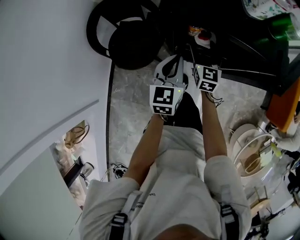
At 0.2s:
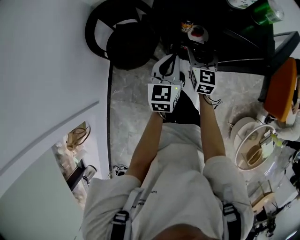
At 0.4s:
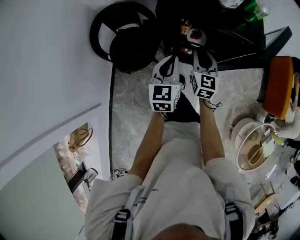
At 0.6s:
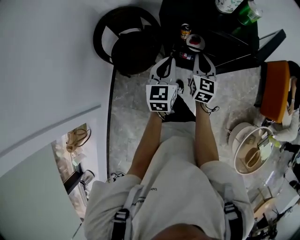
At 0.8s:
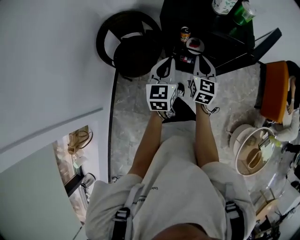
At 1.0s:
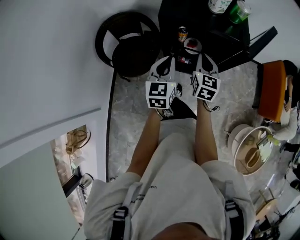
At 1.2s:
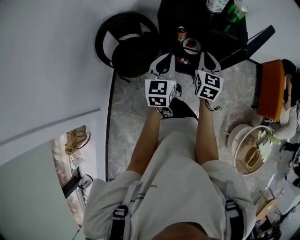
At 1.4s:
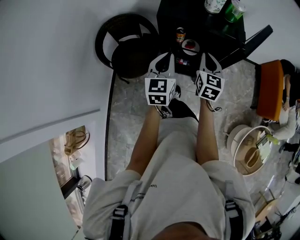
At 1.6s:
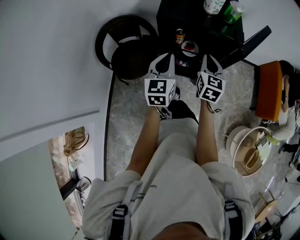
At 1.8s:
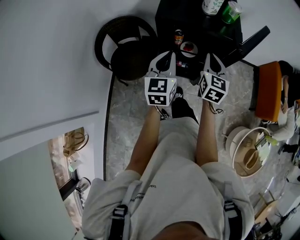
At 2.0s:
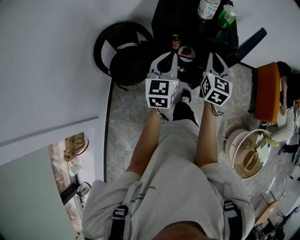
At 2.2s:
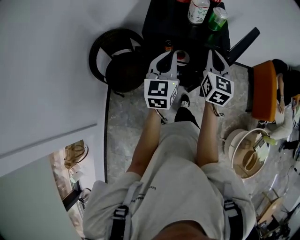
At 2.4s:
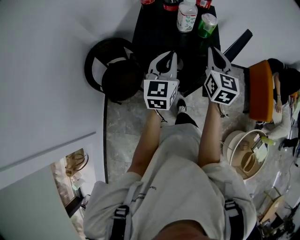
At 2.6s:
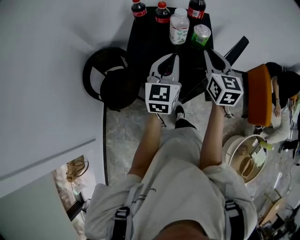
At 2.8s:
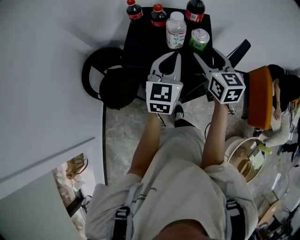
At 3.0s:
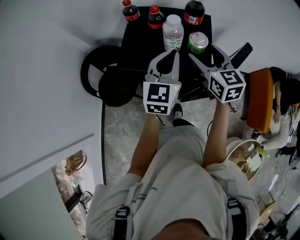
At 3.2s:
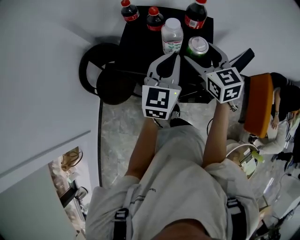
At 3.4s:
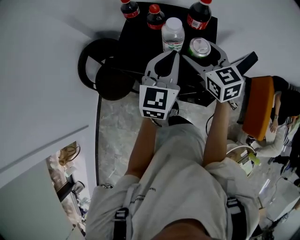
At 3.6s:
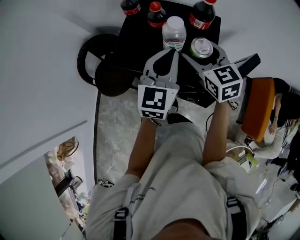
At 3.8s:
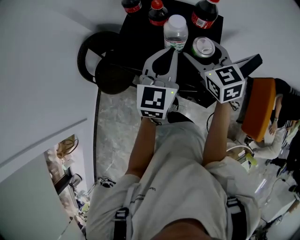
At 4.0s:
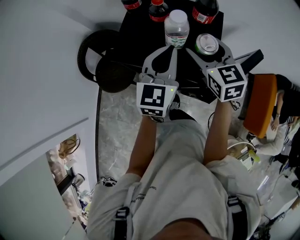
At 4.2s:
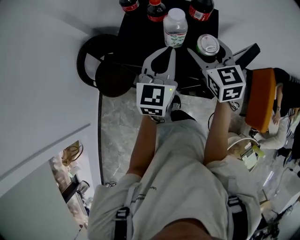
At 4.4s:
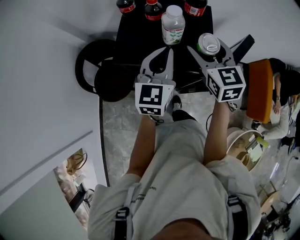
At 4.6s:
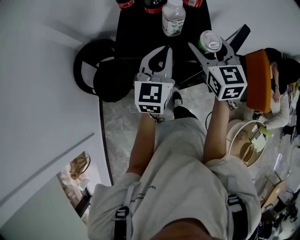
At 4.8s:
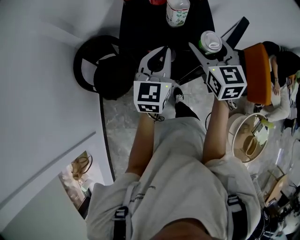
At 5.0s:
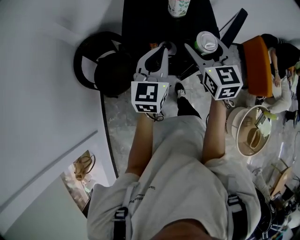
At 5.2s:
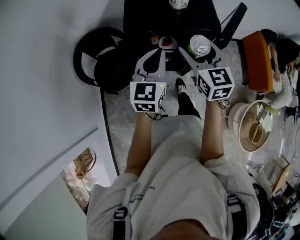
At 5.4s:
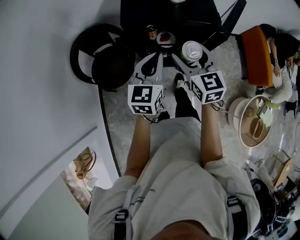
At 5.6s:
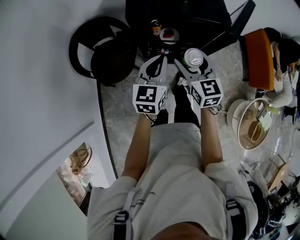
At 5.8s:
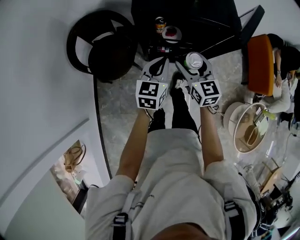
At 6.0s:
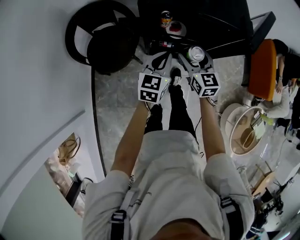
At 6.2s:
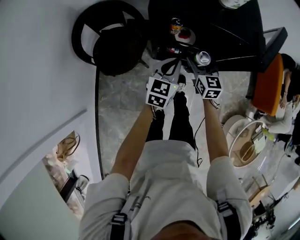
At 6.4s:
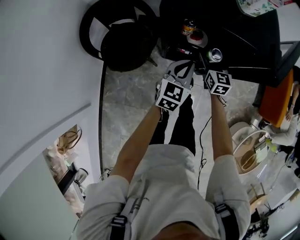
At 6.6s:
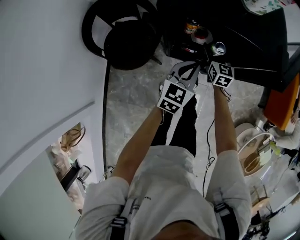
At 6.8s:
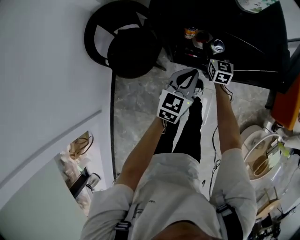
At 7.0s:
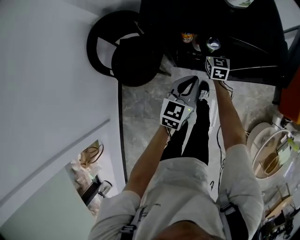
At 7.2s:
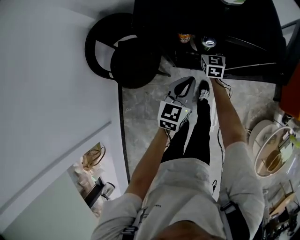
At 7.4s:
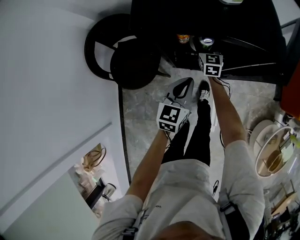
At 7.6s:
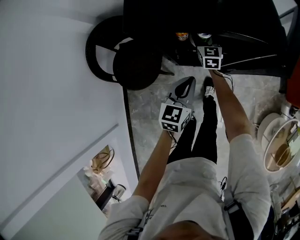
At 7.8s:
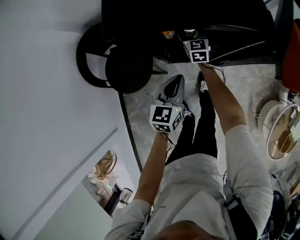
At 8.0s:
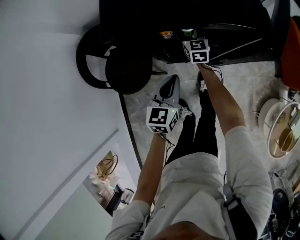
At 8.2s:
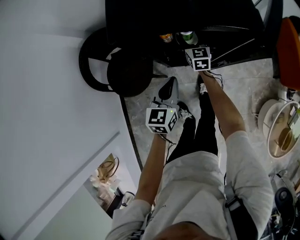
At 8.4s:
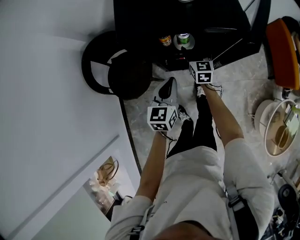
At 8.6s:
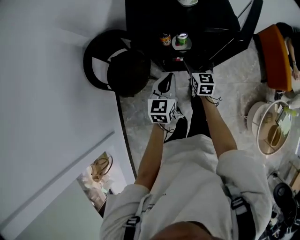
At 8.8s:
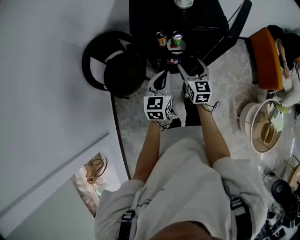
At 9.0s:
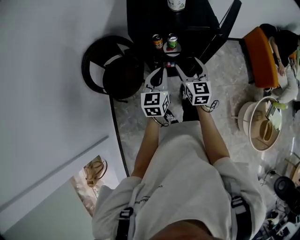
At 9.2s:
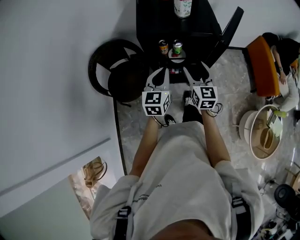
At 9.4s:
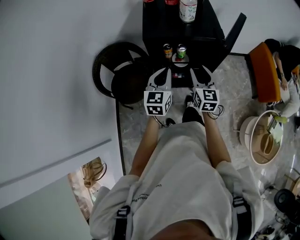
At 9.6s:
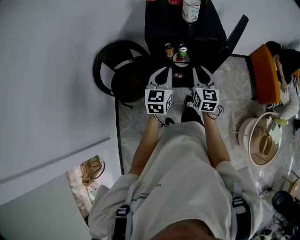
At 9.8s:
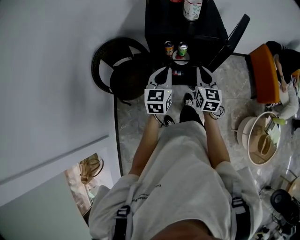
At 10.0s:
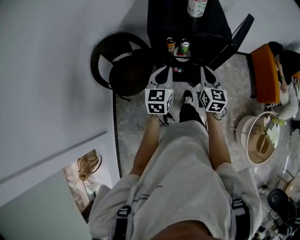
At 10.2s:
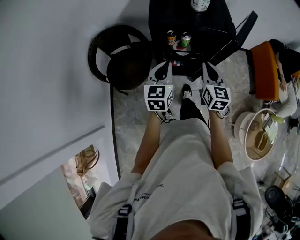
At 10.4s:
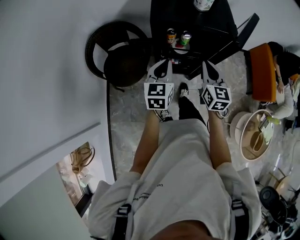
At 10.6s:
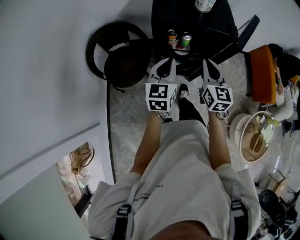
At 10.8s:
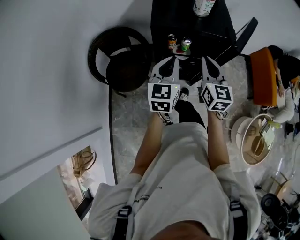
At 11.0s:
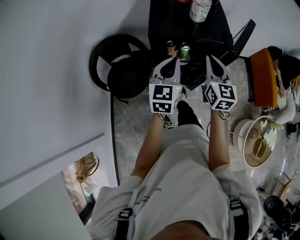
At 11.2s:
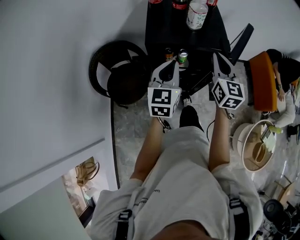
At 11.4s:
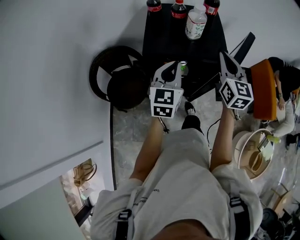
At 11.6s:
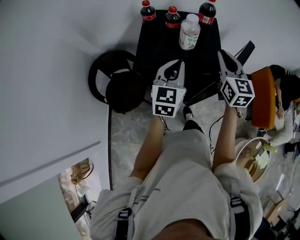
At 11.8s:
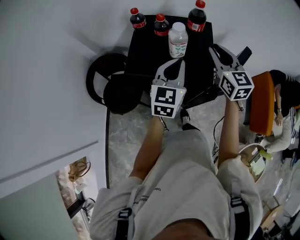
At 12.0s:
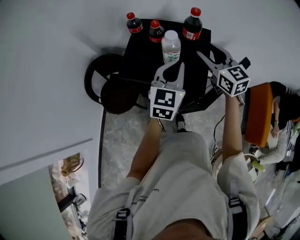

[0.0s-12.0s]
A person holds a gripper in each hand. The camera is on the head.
0.0s to 1.6s: The left gripper heads upward and backward, covering about 15 cm, while the right gripper shifts roughly 25 cm upward, backward and to the right, and closes up.
1.6s to 3.0s: The right gripper heads forward, upward and to the right, covering about 25 cm, turns by some 30 degrees, and opens up. The left gripper is displaced forward, to the right and upward by approximately 25 cm.
3.0s to 4.4s: The grippers move only a little.
4.4s to 6.0s: The two grippers go about 30 cm downward, backward and to the left.
6.0s to 7.6s: The right gripper travels forward and downward by approximately 25 cm. Meanwhile the left gripper is displaced downward by about 5 cm.
7.6s to 9.0s: The left gripper goes some 15 cm upward. The right gripper travels backward and upward by about 35 cm.
9.0s to 10.4s: The right gripper closes up.
10.4s to 12.0s: The right gripper heads forward and upward, covering some 35 cm, turns by some 30 degrees, and opens its fingers; the left gripper heads forward, to the right and upward, covering some 35 cm.

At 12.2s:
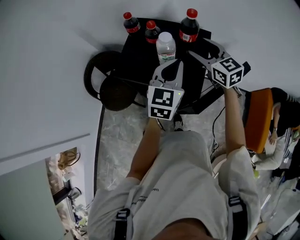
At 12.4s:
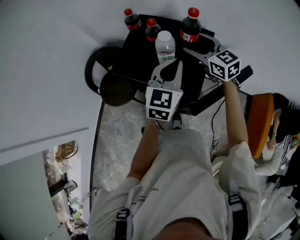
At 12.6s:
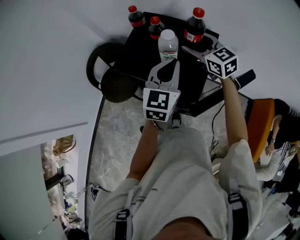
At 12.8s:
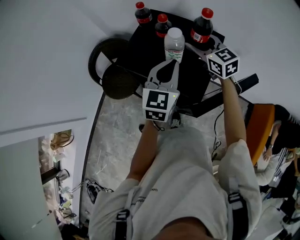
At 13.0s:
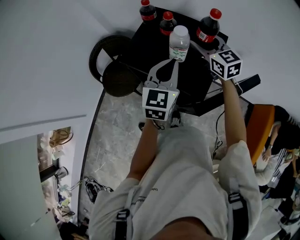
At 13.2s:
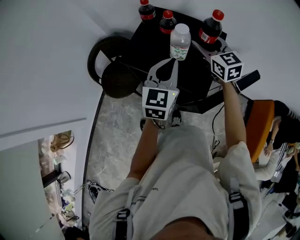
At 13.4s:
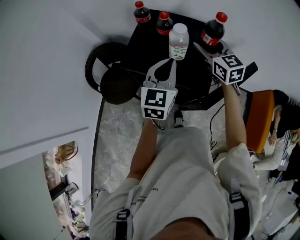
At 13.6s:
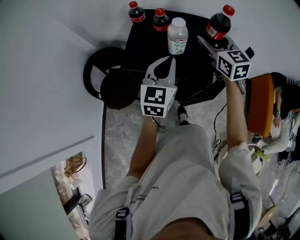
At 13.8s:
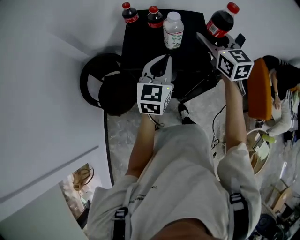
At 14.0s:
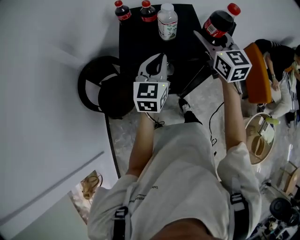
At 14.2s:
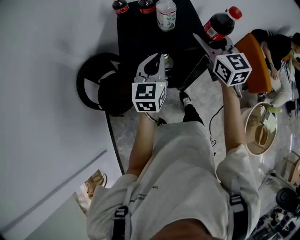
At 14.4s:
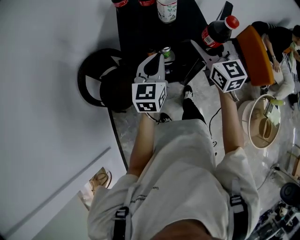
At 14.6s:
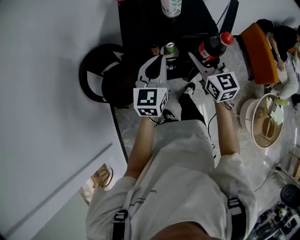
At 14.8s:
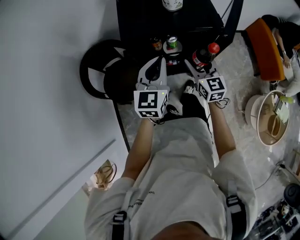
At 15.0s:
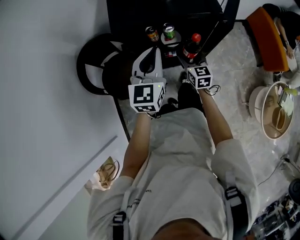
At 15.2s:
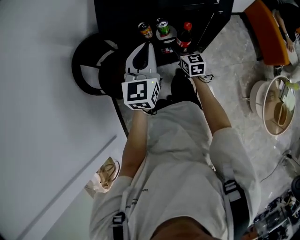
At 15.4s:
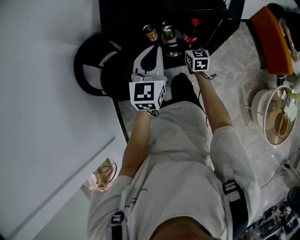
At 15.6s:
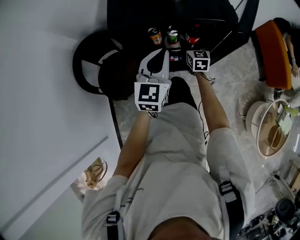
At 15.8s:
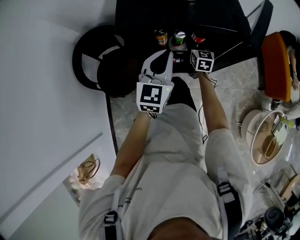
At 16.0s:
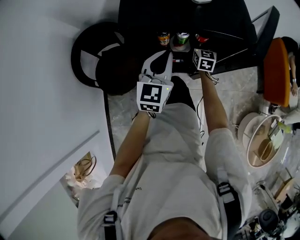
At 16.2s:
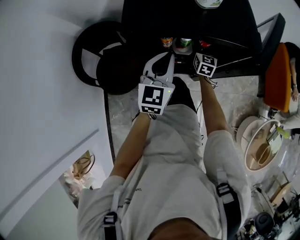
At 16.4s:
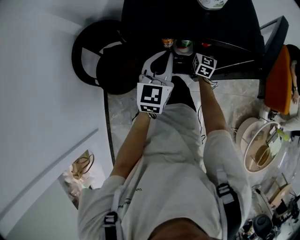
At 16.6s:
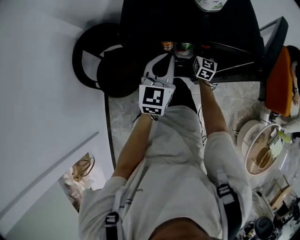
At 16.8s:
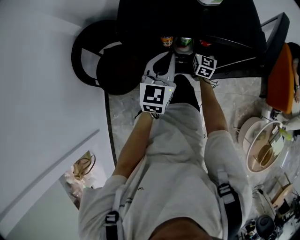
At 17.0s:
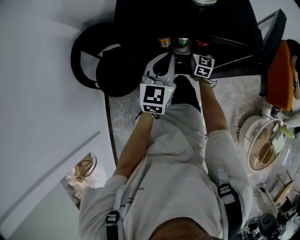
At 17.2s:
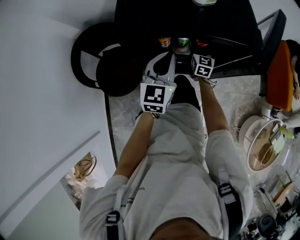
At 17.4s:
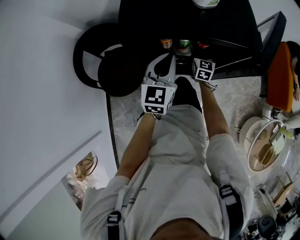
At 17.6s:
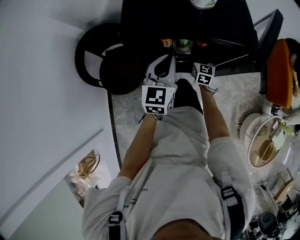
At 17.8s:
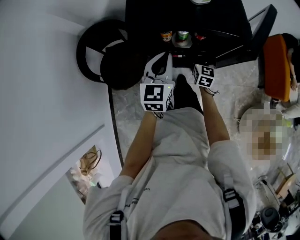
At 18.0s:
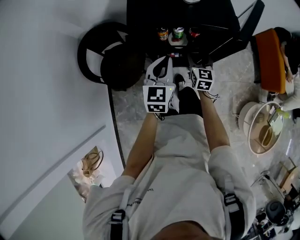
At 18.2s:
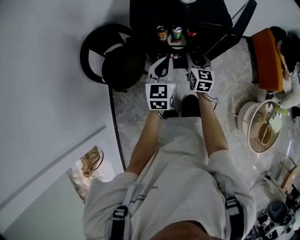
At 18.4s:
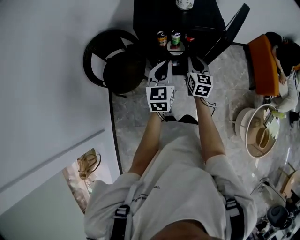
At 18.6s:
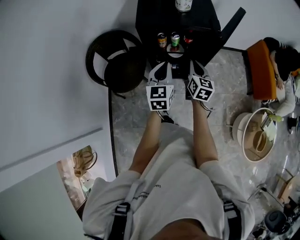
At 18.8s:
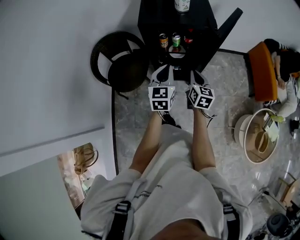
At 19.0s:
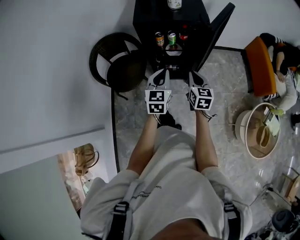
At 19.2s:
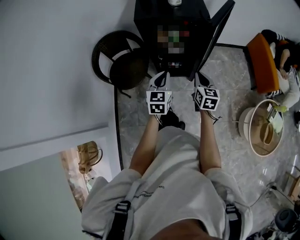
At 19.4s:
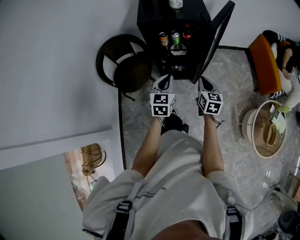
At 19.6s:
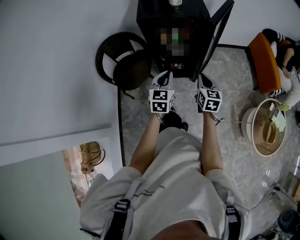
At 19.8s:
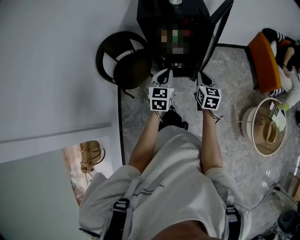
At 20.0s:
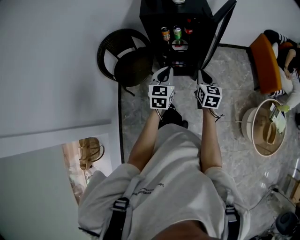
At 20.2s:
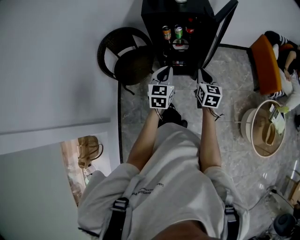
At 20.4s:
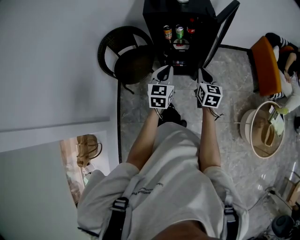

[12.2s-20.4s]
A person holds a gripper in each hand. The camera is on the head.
12.2s to 13.8s: The right gripper changes place by roughly 10 cm, and swivels some 30 degrees. The left gripper shifts by roughly 10 cm.
13.8s to 15.4s: The right gripper travels downward by about 40 cm, and swivels some 30 degrees, while the left gripper travels downward and backward by approximately 15 cm.
15.4s to 17.2s: The left gripper moves downward and forward, roughly 10 cm, while the right gripper is displaced forward and downward by about 10 cm.
17.2s to 18.8s: The right gripper moves backward and upward, roughly 40 cm, and closes. The left gripper shifts roughly 25 cm backward and upward.
18.8s to 20.4s: The two grippers go about 10 cm backward.

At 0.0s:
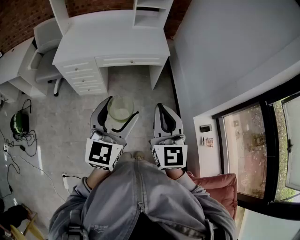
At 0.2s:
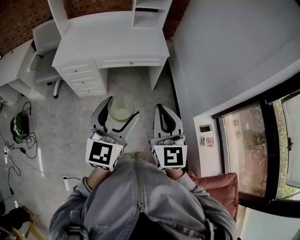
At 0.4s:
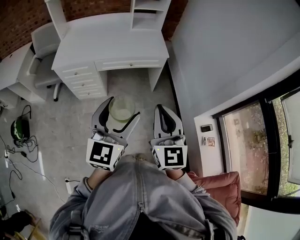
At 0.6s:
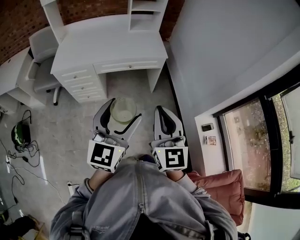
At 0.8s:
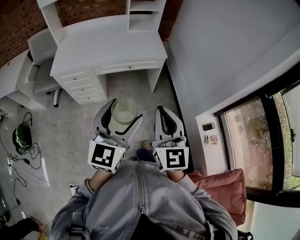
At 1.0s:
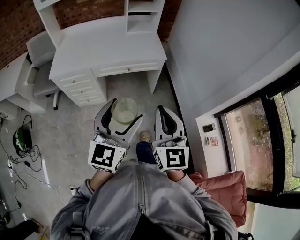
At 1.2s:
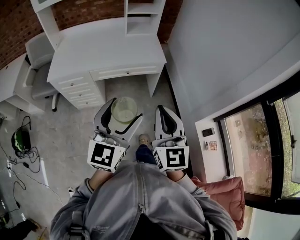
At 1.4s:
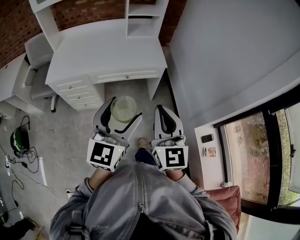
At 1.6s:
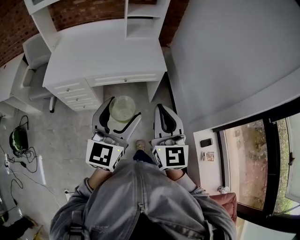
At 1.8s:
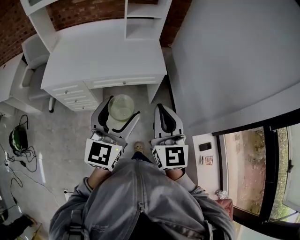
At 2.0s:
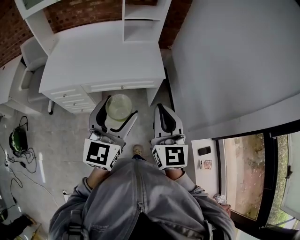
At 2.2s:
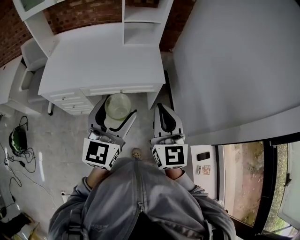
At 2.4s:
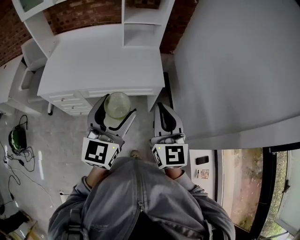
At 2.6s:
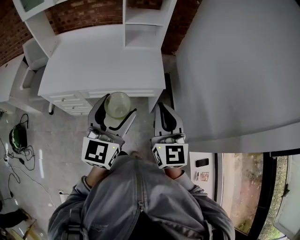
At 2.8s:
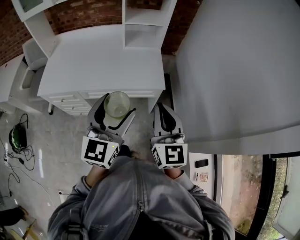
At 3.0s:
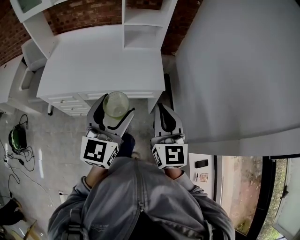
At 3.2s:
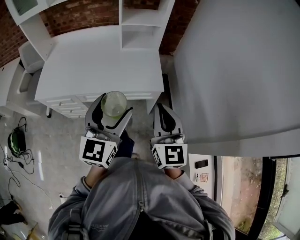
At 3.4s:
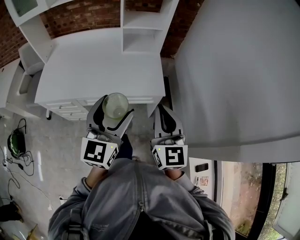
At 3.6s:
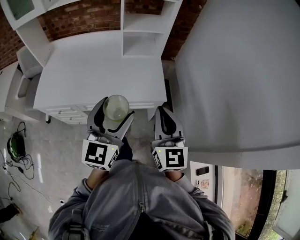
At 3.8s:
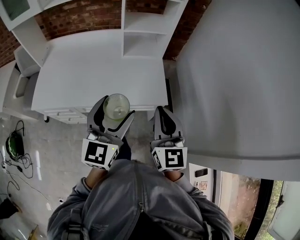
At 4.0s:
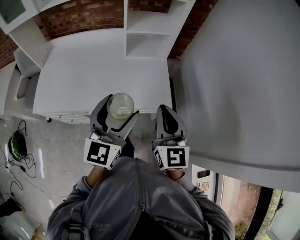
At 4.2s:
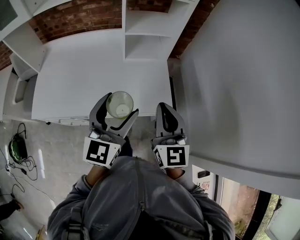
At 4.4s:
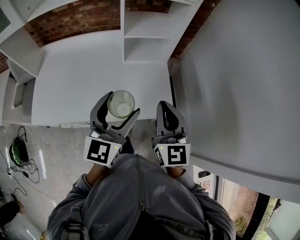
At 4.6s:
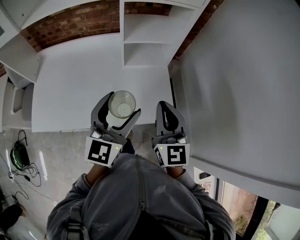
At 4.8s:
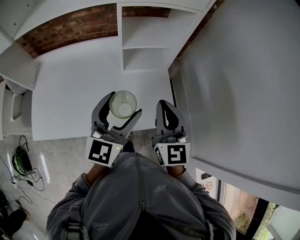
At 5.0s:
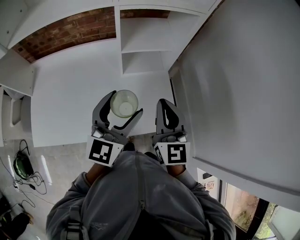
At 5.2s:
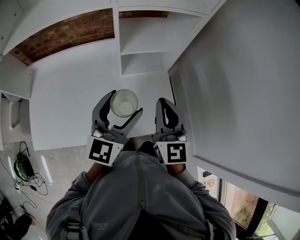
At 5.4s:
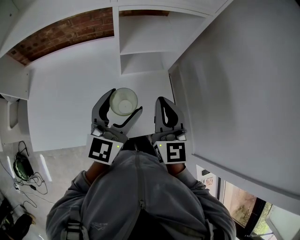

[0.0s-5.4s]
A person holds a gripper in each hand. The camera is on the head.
0.0s to 1.4s: Both grippers move forward, about 10 cm.
1.4s to 2.8s: Both grippers move forward, about 20 cm.
2.8s to 4.0s: Both grippers travel together forward, approximately 15 cm.
4.0s to 5.4s: The grippers both shift forward by approximately 20 cm.
